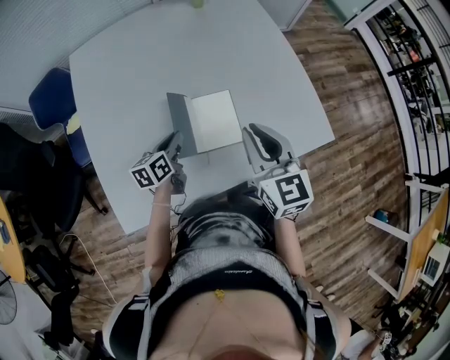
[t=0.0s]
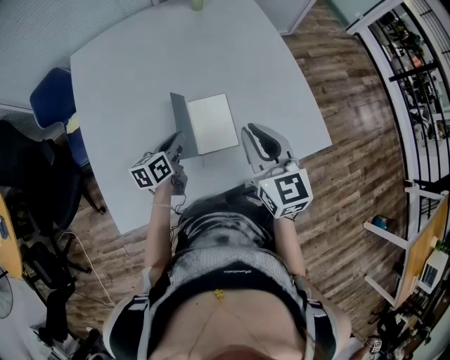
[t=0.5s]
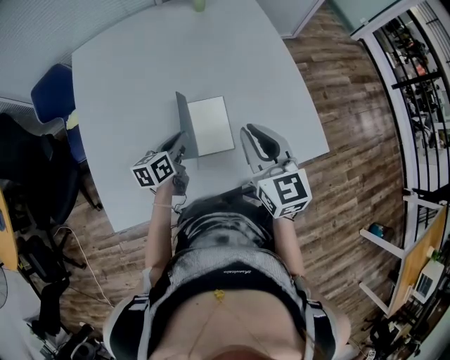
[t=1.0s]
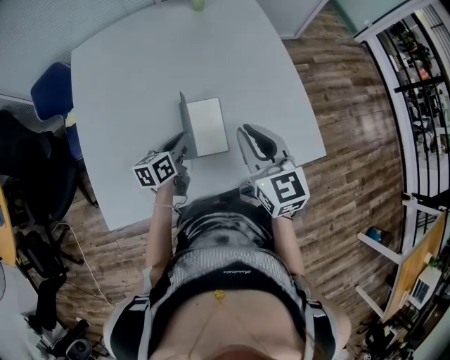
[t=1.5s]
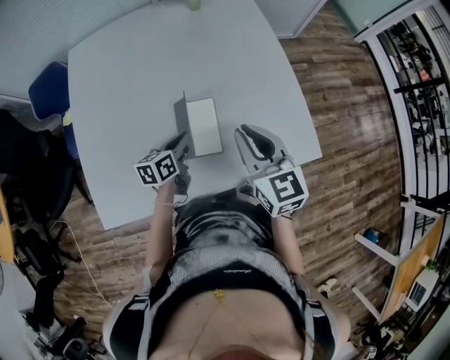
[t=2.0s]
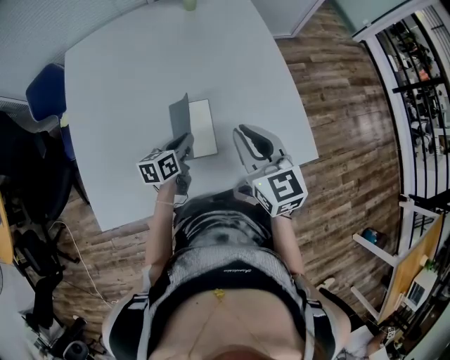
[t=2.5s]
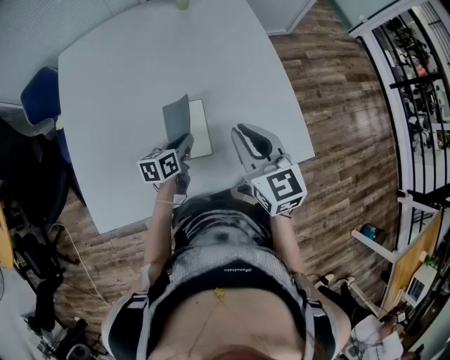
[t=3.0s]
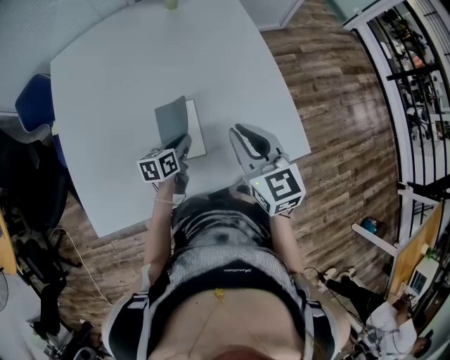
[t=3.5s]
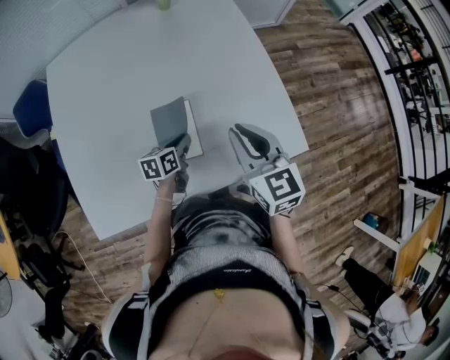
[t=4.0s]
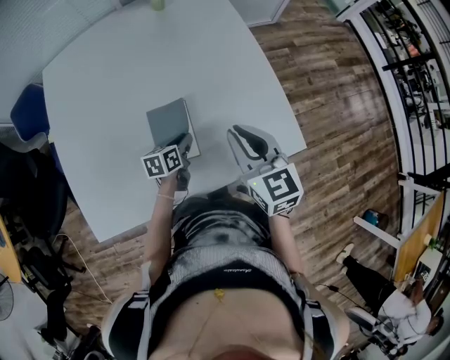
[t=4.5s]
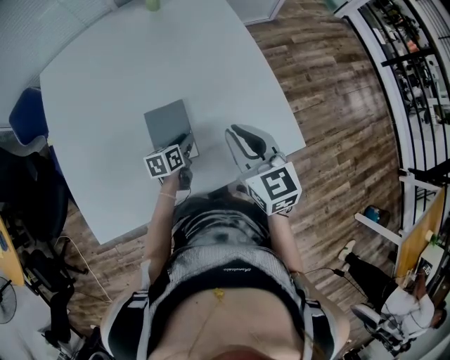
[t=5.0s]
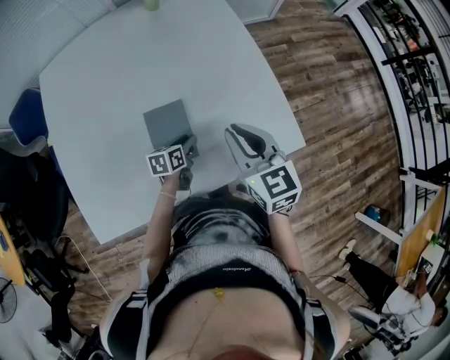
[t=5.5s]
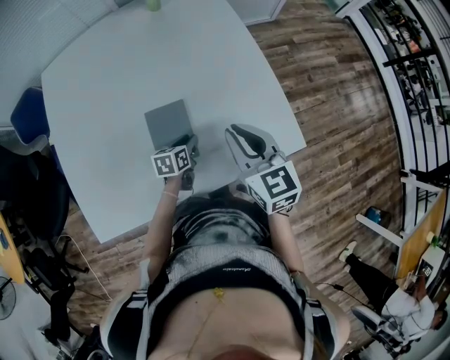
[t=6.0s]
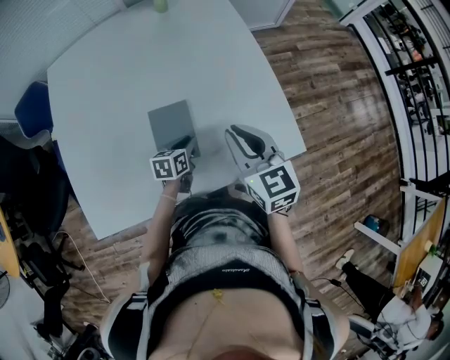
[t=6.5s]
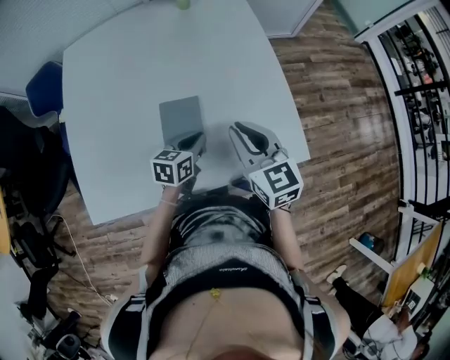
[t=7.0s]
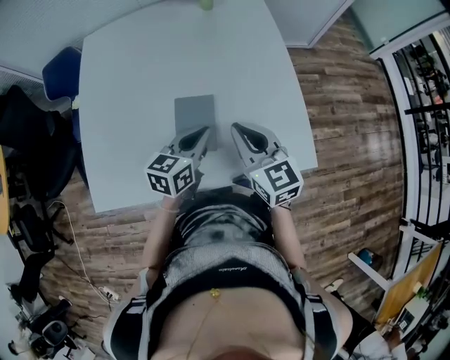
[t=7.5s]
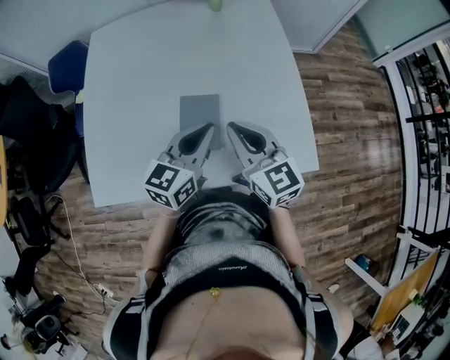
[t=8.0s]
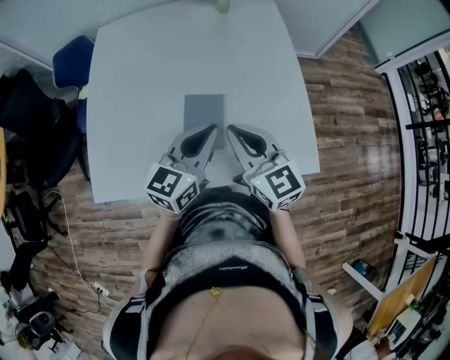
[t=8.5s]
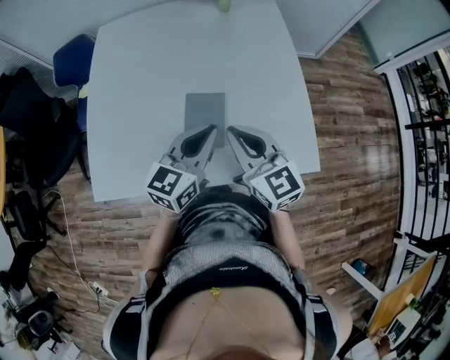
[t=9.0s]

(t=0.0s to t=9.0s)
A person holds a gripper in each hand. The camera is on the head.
t=0.0s - t=2.0s: The right gripper travels to the right by approximately 5 cm, while the left gripper is displaced to the right by roughly 10 cm.
t=2.0s - t=4.5s: The left gripper heads downward and to the right, covering roughly 10 cm; the right gripper moves to the right, approximately 5 cm.
t=4.5s - t=7.0s: The left gripper is displaced upward by some 10 cm.
t=7.0s - t=9.0s: The right gripper shifts some 10 cm to the left, while the left gripper shifts about 20 cm upward, and rotates about 30 degrees.

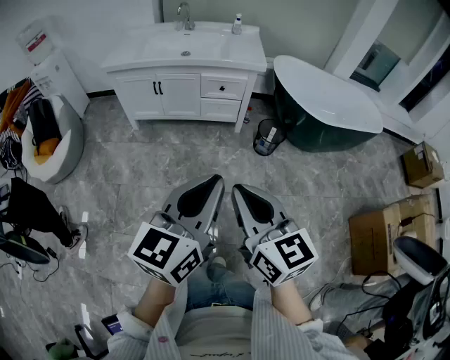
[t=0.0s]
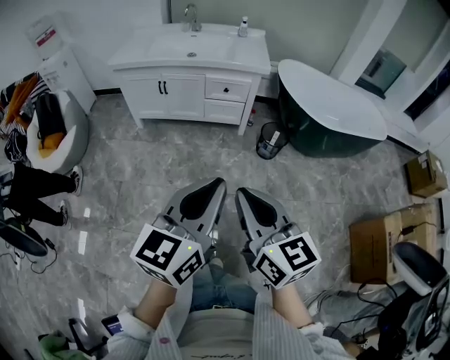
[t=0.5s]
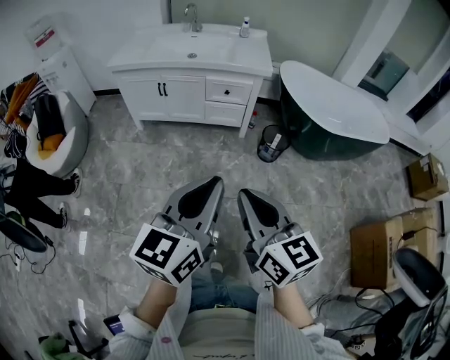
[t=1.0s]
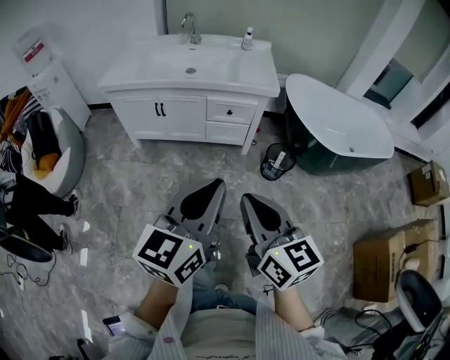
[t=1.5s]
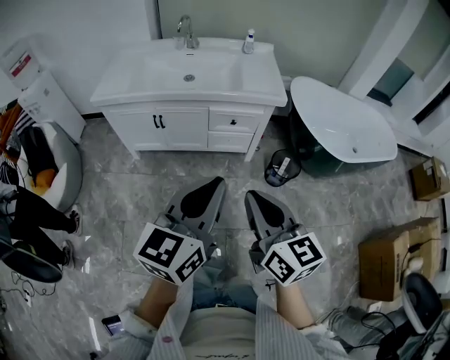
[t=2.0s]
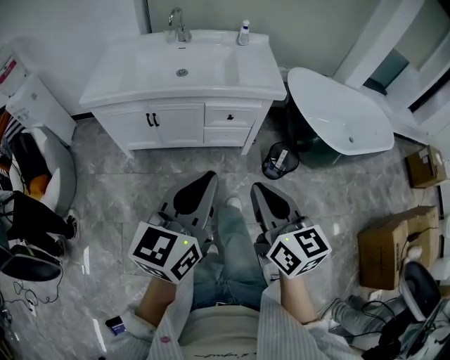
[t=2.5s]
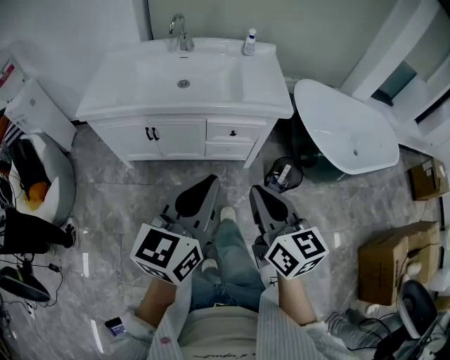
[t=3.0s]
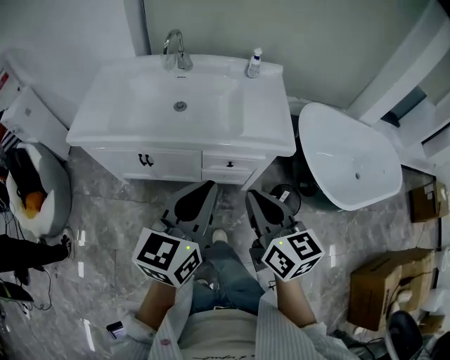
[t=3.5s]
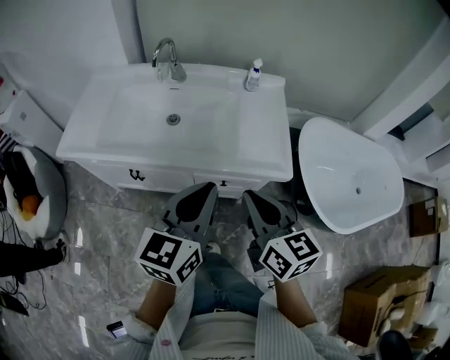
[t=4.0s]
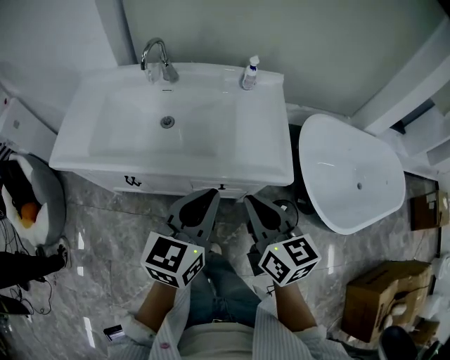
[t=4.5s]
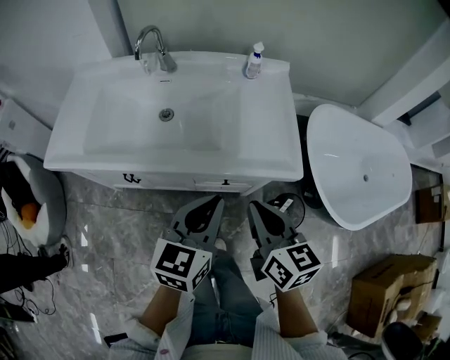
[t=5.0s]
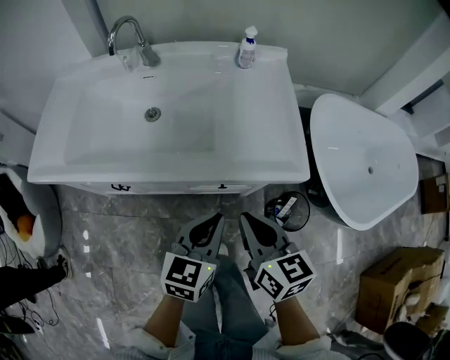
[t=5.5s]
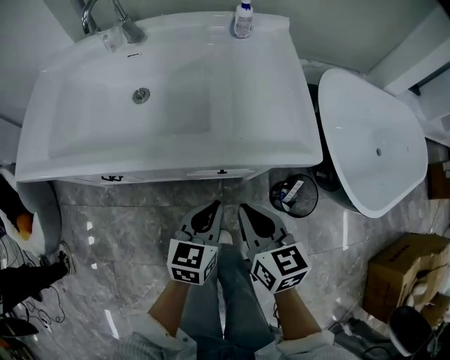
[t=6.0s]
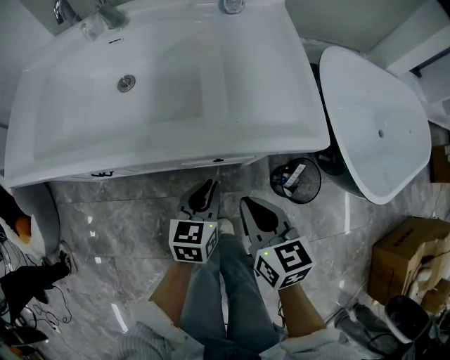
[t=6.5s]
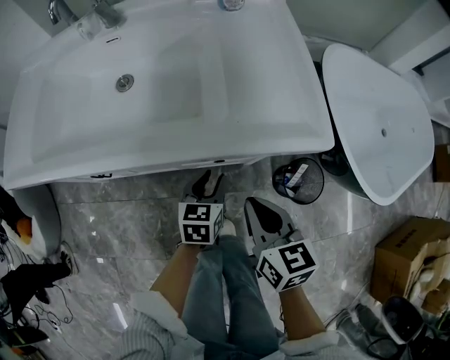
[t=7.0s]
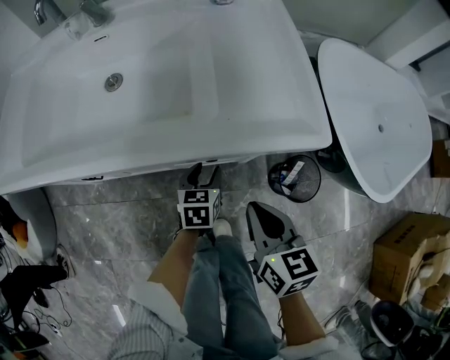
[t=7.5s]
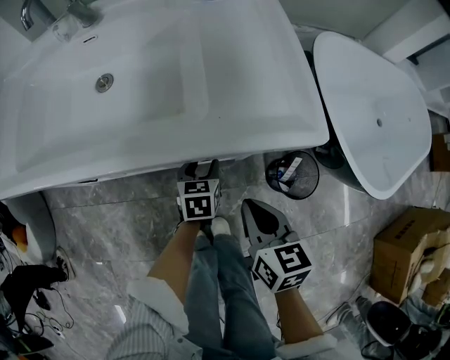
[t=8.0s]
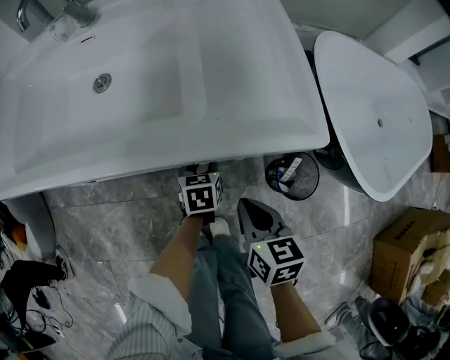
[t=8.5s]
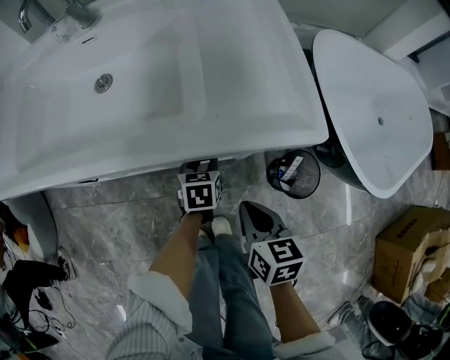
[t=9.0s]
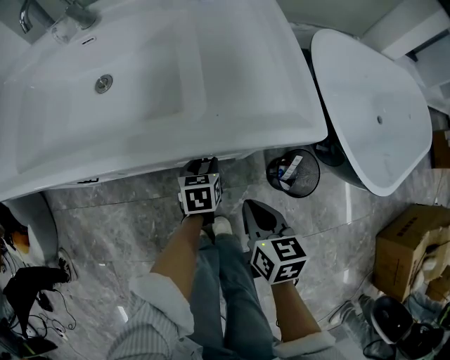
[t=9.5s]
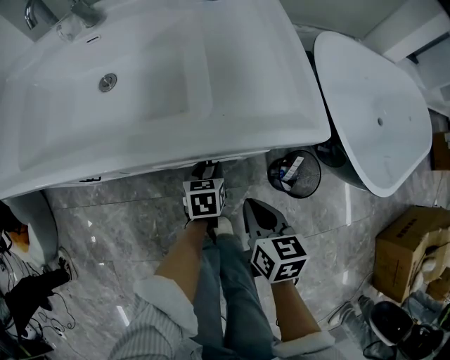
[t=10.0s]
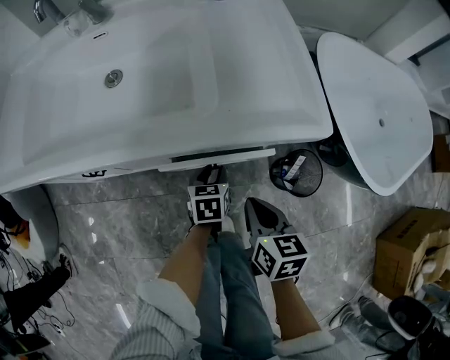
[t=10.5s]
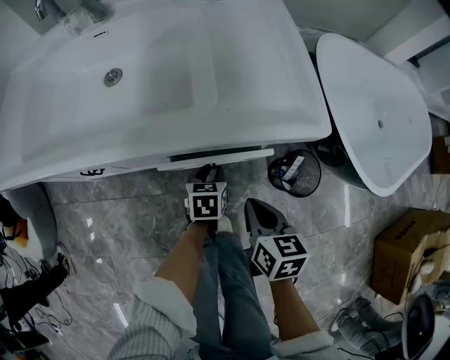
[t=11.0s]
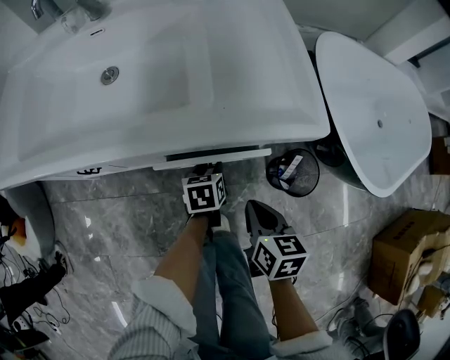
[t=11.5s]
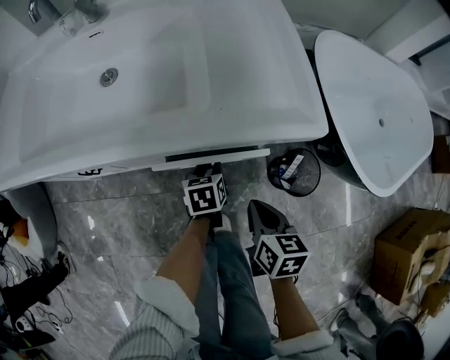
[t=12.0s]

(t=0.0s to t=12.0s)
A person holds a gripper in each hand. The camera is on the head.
t=0.0s - t=2.0s: Both grippers travel together forward, about 25 cm.
t=2.0s - t=4.0s: Both grippers travel together forward, roughly 35 cm.
t=4.0s - t=6.0s: The grippers both shift downward by some 25 cm. The left gripper swivels approximately 20 degrees.
t=6.0s - t=8.0s: The left gripper goes approximately 20 cm downward and forward, and opens up. The right gripper goes roughly 10 cm downward.
t=8.0s - t=10.0s: The grippers move only a little.
t=10.0s - t=12.0s: There are only small adjustments of the grippers.

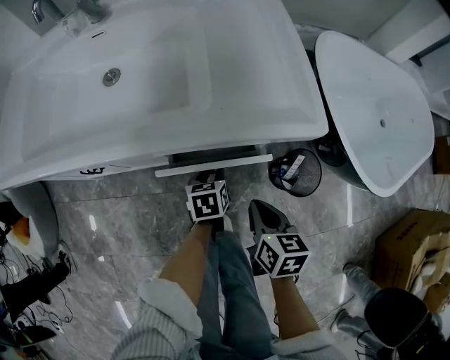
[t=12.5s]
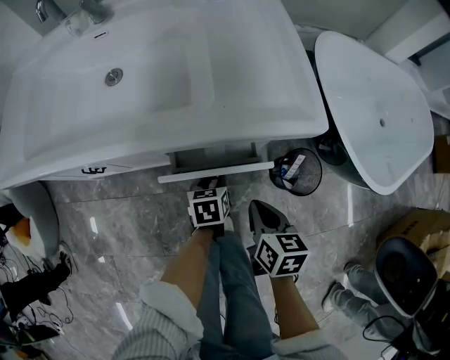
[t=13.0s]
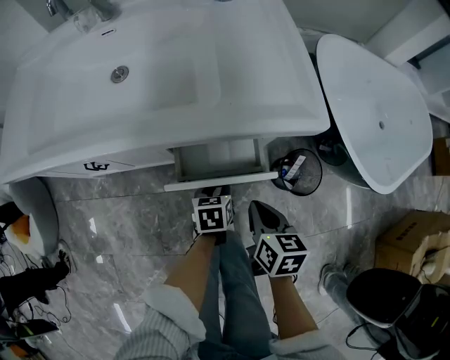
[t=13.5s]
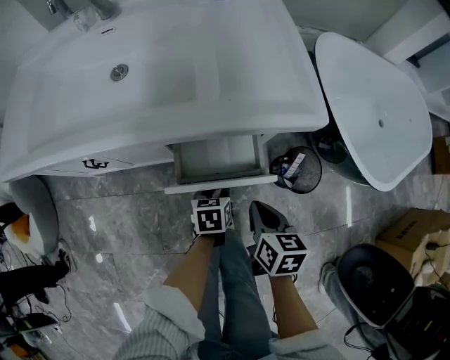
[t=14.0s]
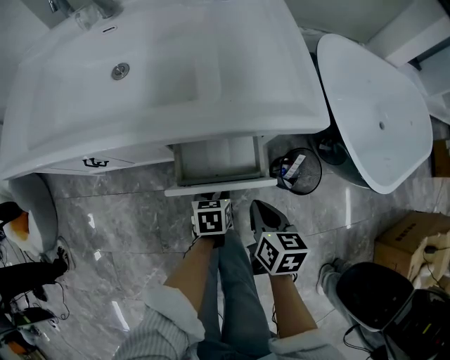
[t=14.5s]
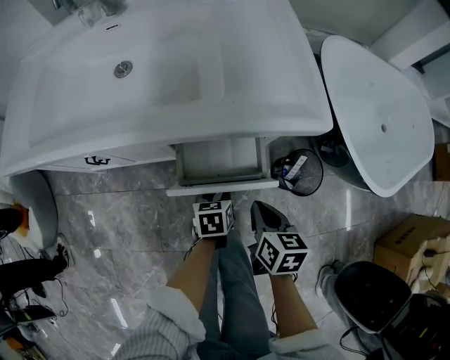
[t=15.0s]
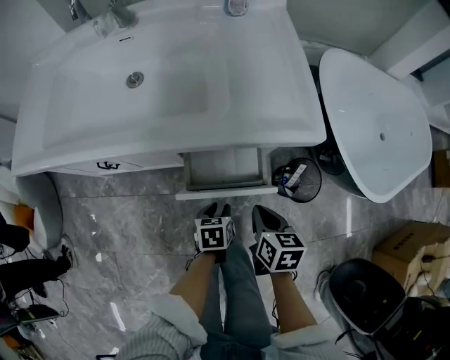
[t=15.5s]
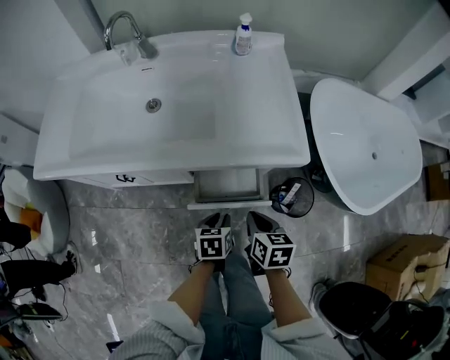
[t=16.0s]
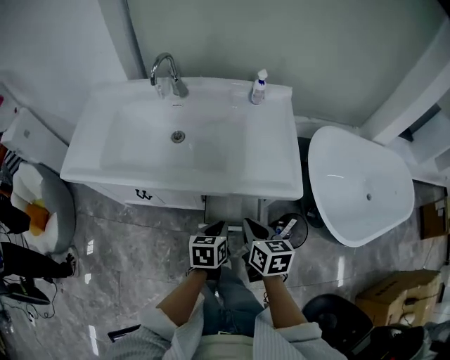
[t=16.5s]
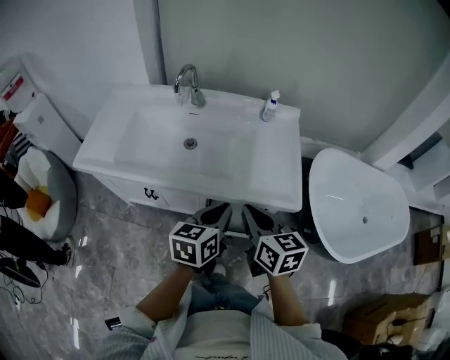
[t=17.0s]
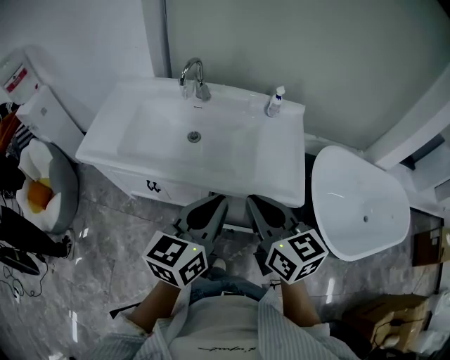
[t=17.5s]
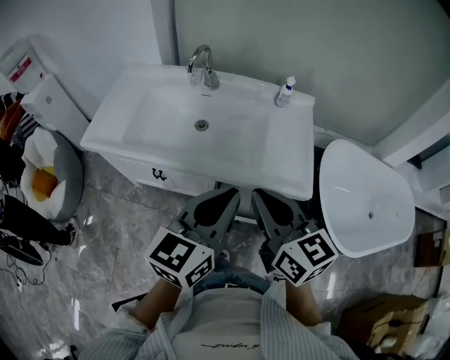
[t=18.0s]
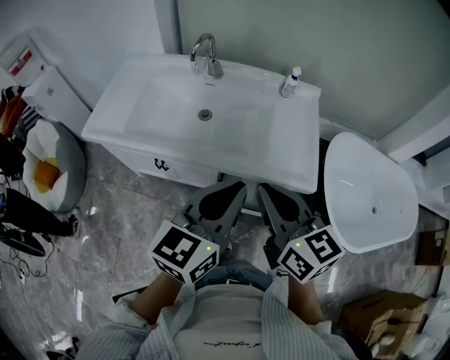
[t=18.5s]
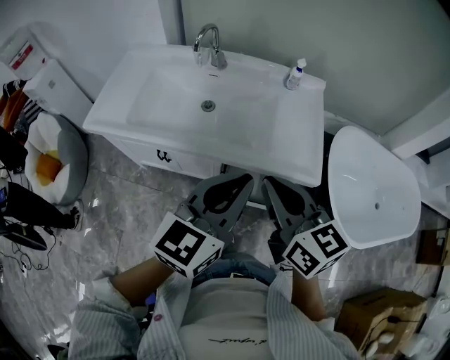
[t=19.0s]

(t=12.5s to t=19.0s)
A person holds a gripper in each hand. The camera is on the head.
t=12.5s - t=14.5s: The left gripper is displaced backward by some 5 cm.
t=14.5s - t=17.0s: Both grippers move upward, about 35 cm. The right gripper swivels some 30 degrees. The left gripper tips its fingers upward by about 30 degrees, and closes its fingers.
t=17.0s - t=19.0s: Both grippers move upward, some 10 cm. The left gripper swivels approximately 20 degrees.
